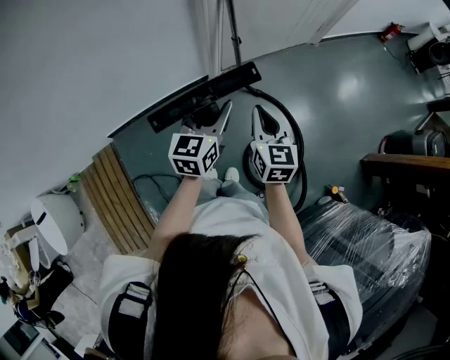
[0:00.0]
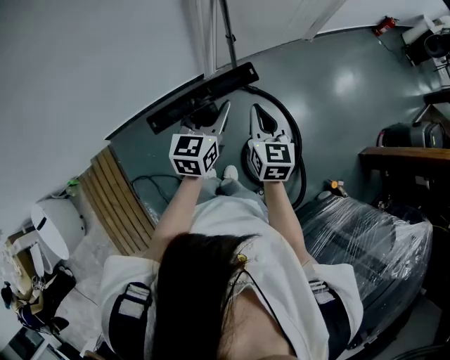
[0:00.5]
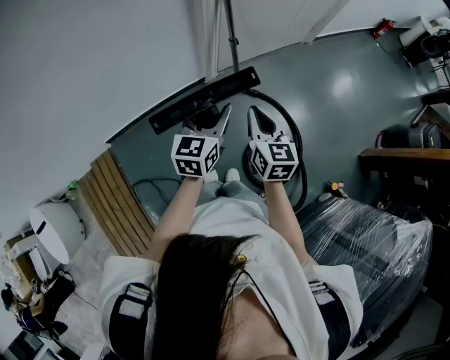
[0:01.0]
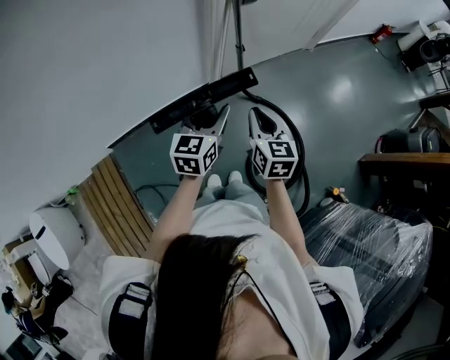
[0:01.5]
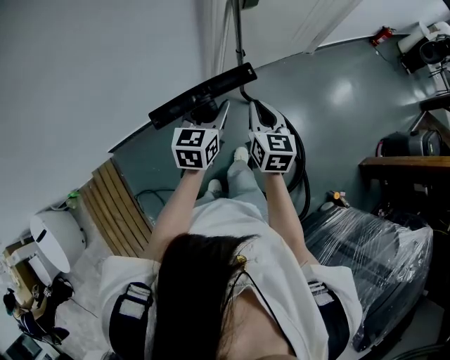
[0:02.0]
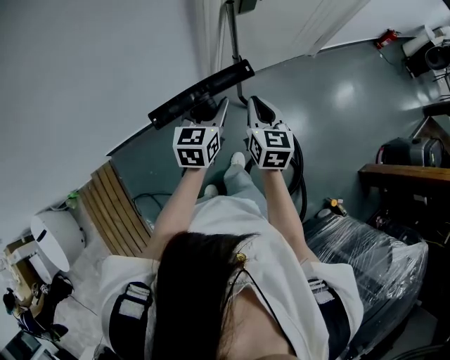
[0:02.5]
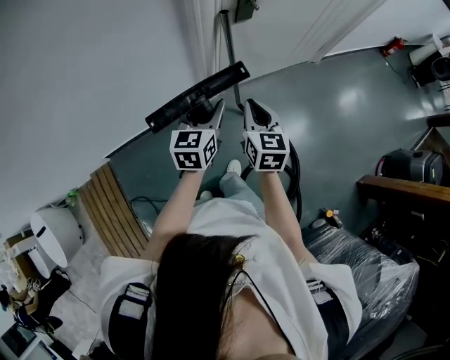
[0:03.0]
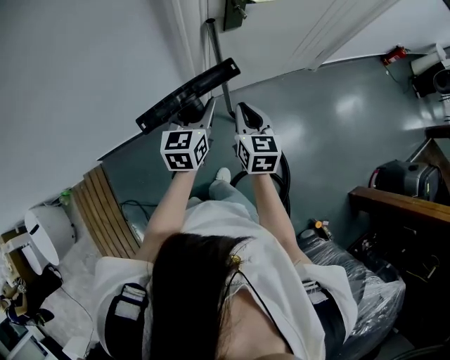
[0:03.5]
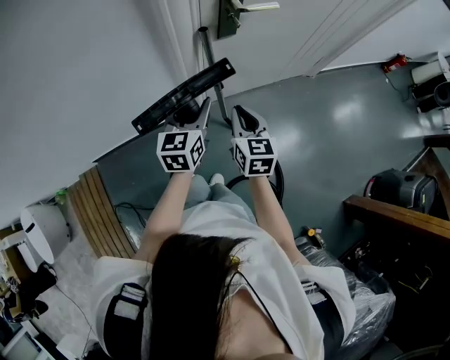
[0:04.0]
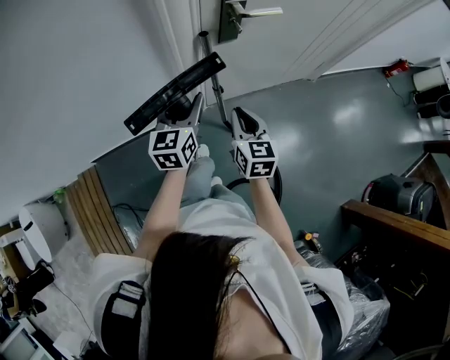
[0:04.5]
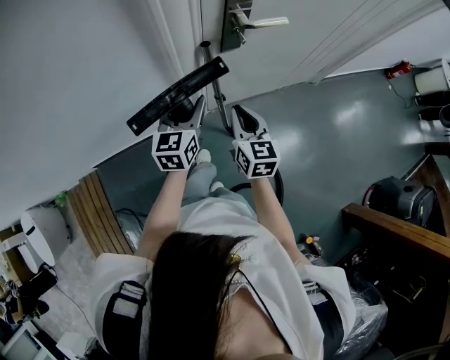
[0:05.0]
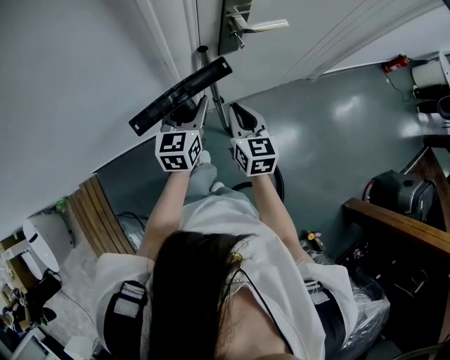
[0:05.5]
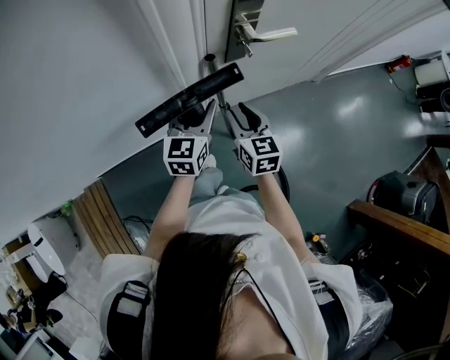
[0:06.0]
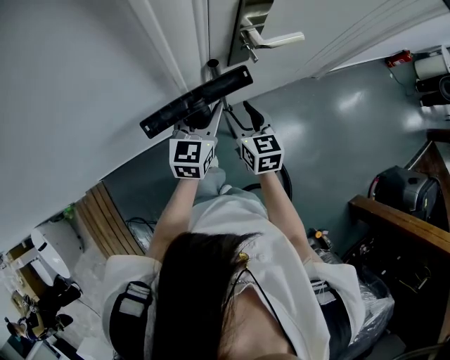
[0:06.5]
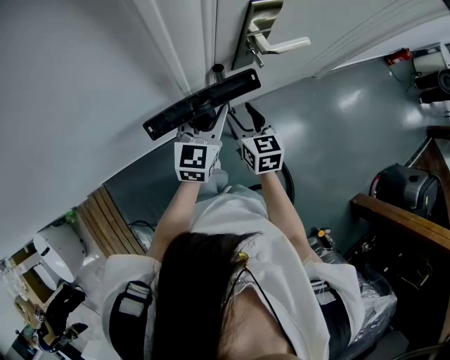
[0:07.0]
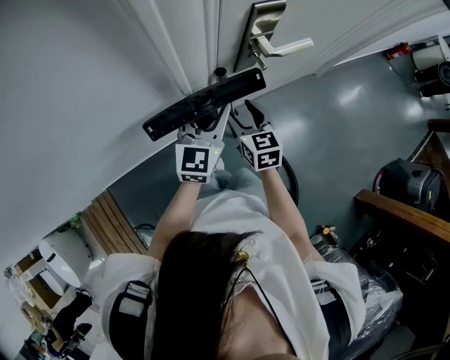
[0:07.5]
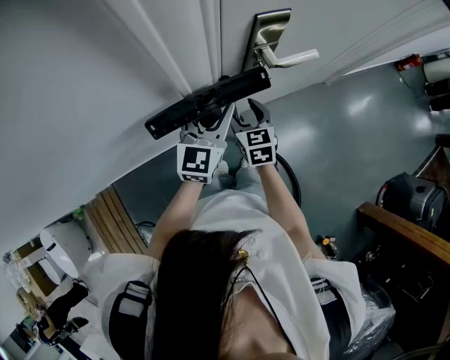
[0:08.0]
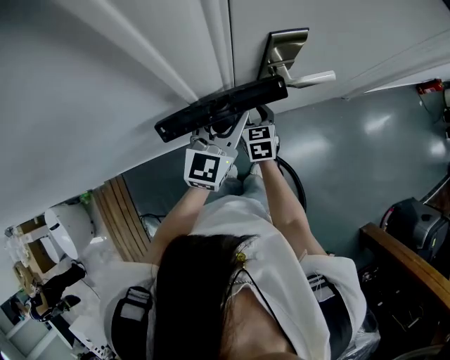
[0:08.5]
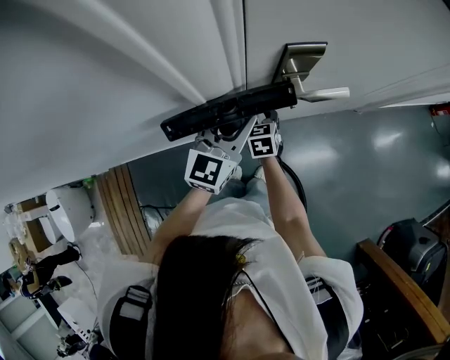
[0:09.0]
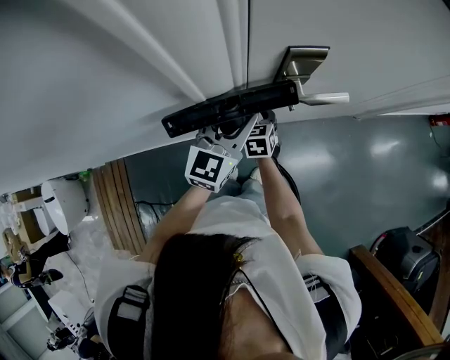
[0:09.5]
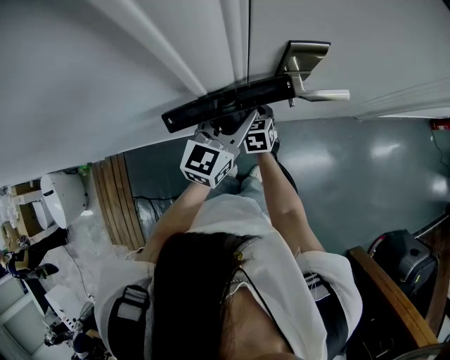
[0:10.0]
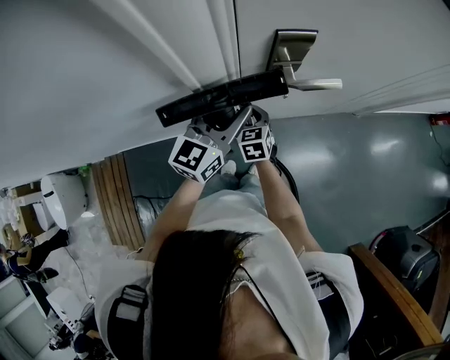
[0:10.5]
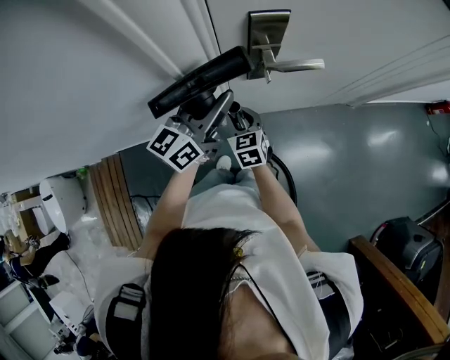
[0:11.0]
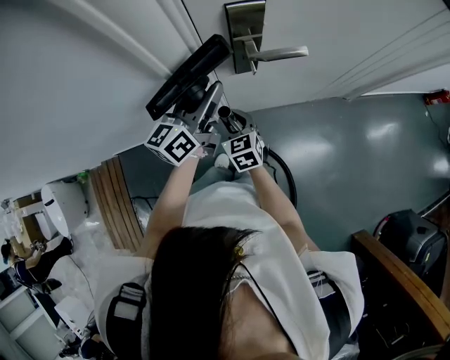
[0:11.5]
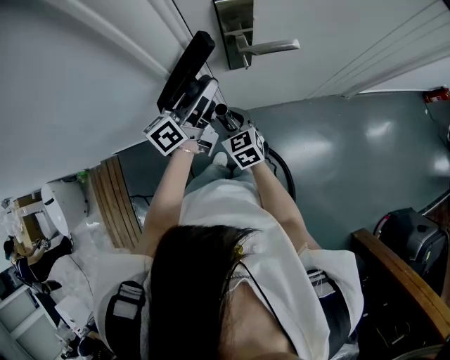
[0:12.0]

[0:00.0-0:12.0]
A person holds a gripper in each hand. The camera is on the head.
0:00.0 to 0:02.0: The right gripper moves to the left and forward, some 10 cm. The left gripper is displaced to the left by some 5 cm.
0:02.0 to 0:04.0: Both grippers travel together forward and to the right, some 25 cm.
0:04.0 to 0:06.0: The two grippers go roughly 10 cm forward.
0:06.0 to 0:08.0: The left gripper shifts about 5 cm forward. The right gripper travels forward and downward by approximately 10 cm, and opens its fingers.
0:08.0 to 0:10.0: The right gripper heads downward and forward, covering about 10 cm, and closes up.
0:10.0 to 0:12.0: The left gripper twists approximately 40 degrees counterclockwise, seen from behind. Meanwhile the right gripper travels backward and upward by approximately 15 cm.

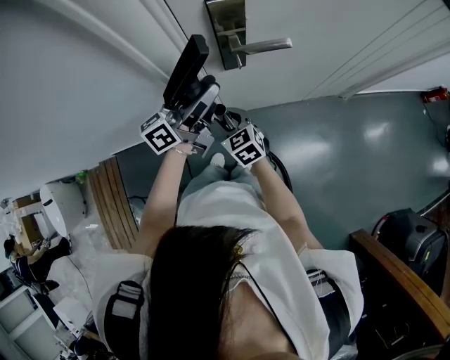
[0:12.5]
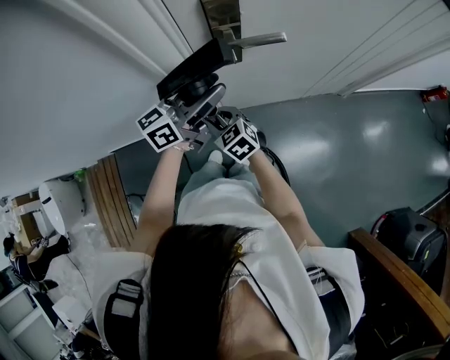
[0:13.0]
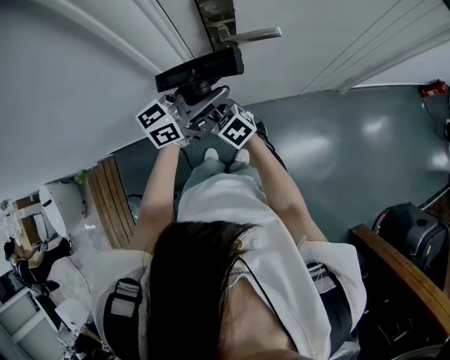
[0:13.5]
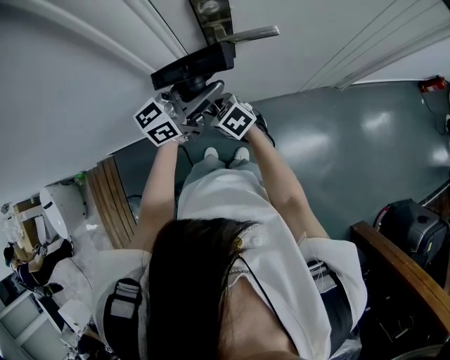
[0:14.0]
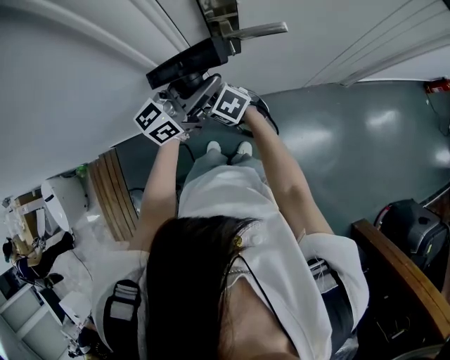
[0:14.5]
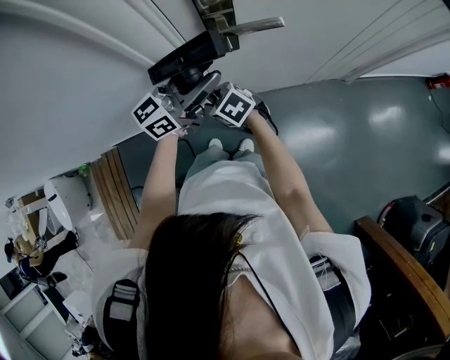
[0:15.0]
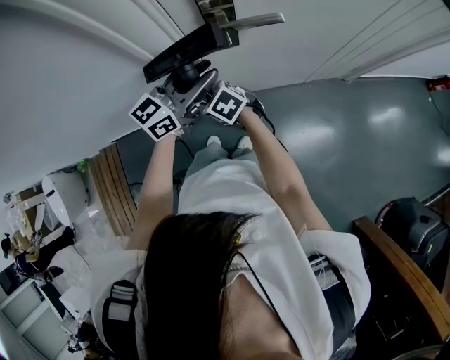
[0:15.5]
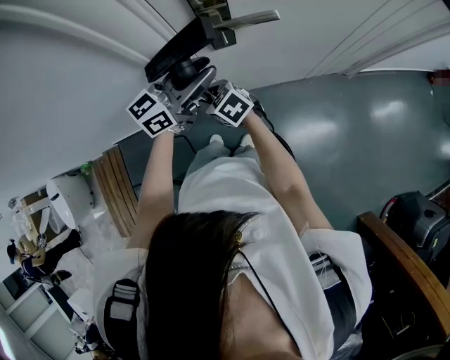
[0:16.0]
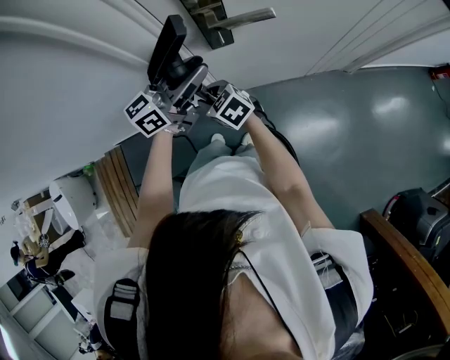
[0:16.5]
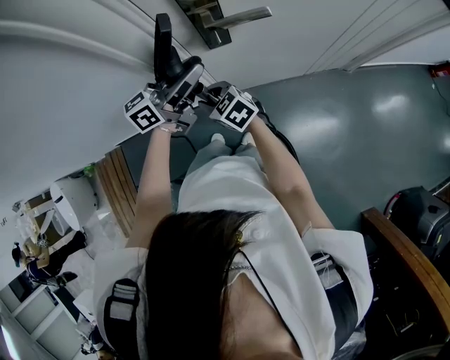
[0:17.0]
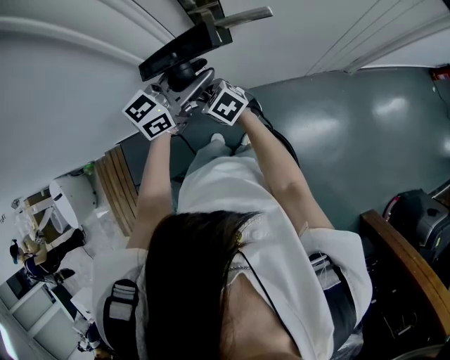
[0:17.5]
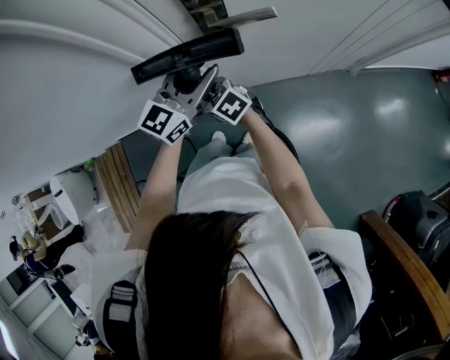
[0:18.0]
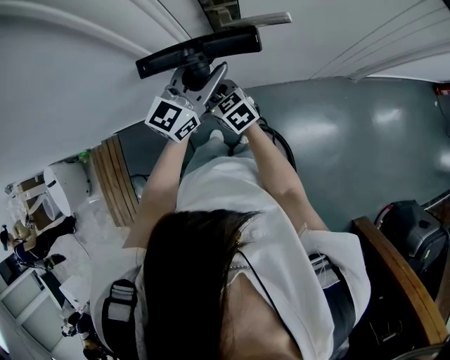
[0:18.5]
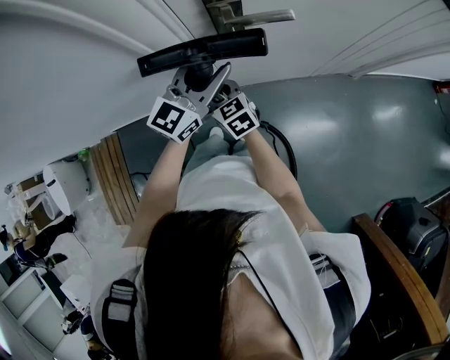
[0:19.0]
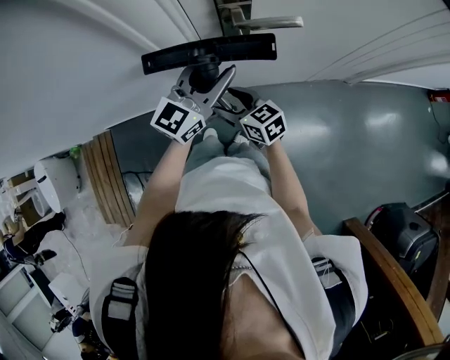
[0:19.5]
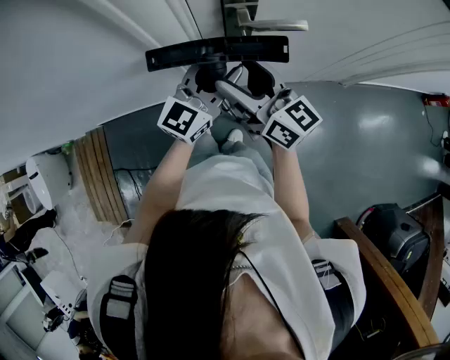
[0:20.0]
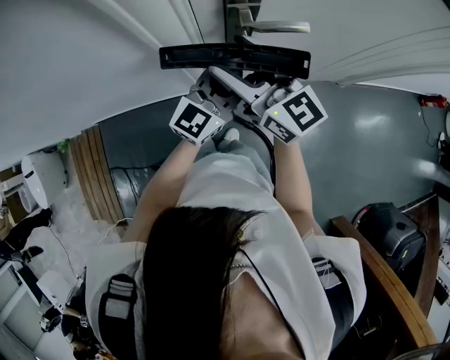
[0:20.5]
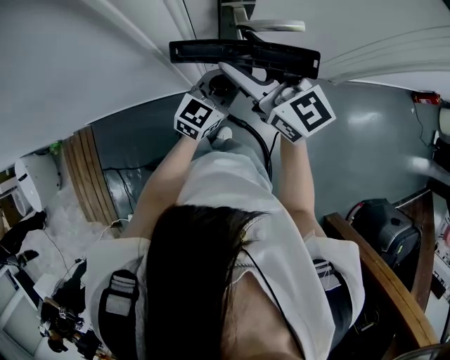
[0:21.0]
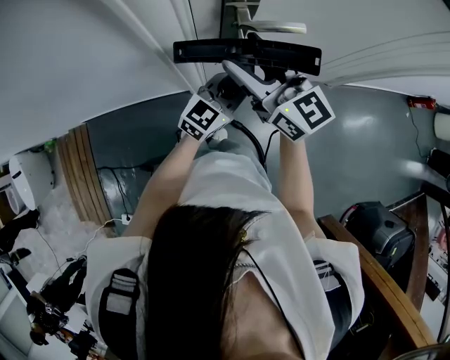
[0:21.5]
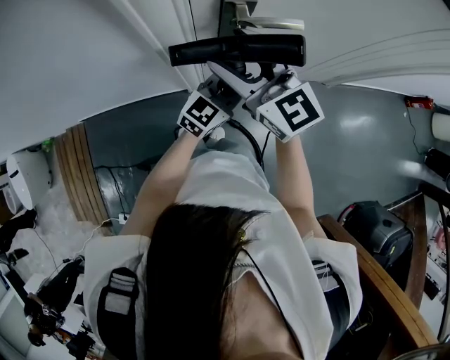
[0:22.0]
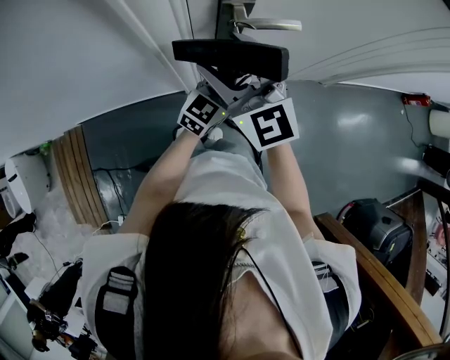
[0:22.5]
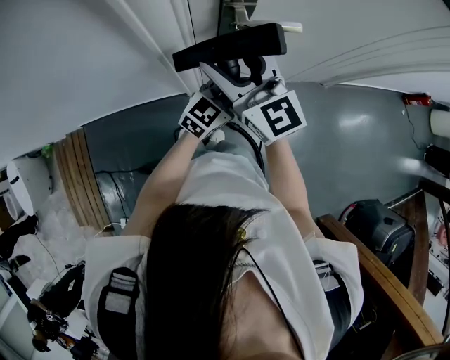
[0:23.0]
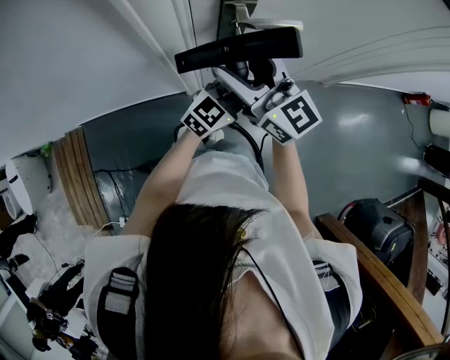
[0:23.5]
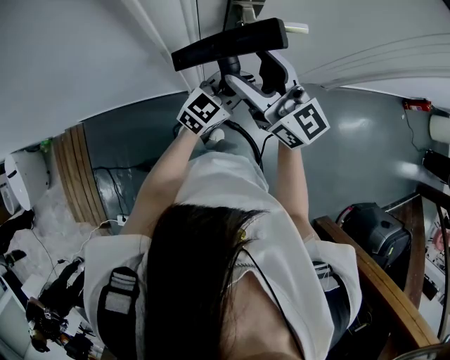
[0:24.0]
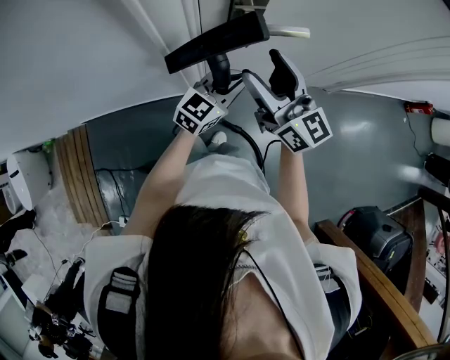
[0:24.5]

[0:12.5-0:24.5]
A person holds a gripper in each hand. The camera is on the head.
0:12.5 to 0:14.5: The right gripper rotates some 30 degrees. The left gripper changes its angle by approximately 30 degrees.
0:14.5 to 0:16.5: The grippers make only small movements.
0:16.5 to 0:18.5: The left gripper changes its angle by roughly 30 degrees.
0:18.5 to 0:20.5: The right gripper shifts roughly 25 cm upward, points its fingers about 40 degrees further upward, and opens up.
0:20.5 to 0:22.5: The left gripper heads downward and to the right, covering some 10 cm. The right gripper changes its angle by some 30 degrees.
0:22.5 to 0:24.5: The right gripper heads to the right, covering about 5 cm, and rotates about 30 degrees.

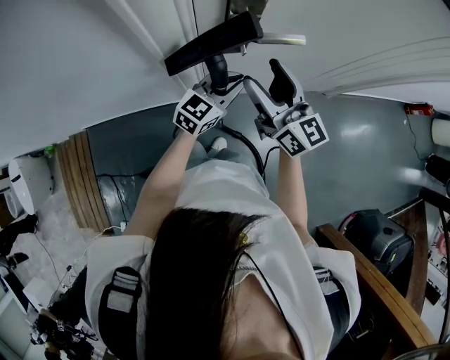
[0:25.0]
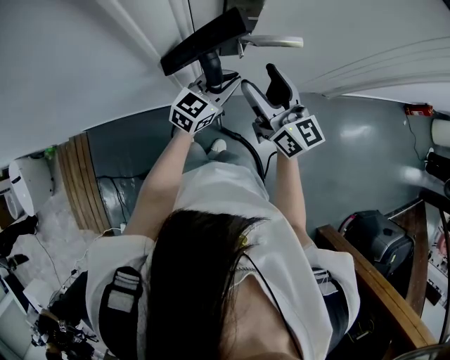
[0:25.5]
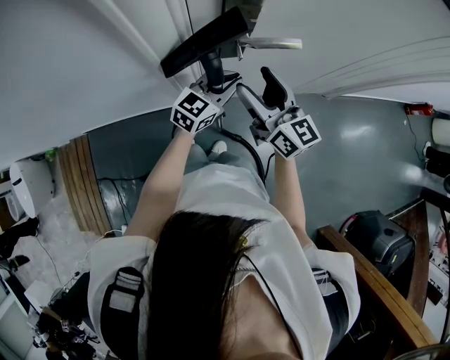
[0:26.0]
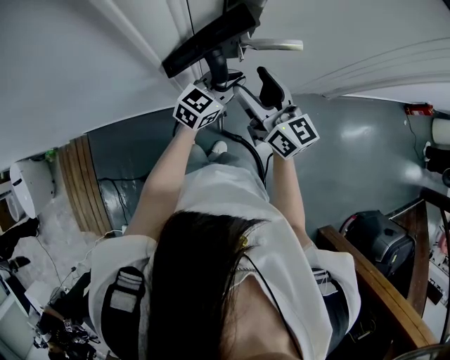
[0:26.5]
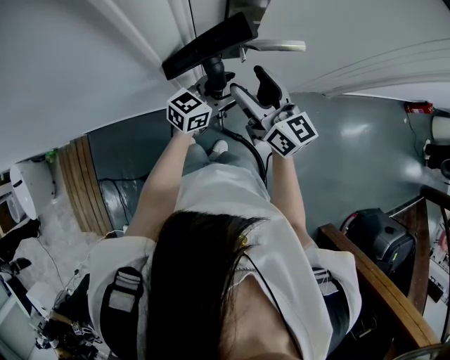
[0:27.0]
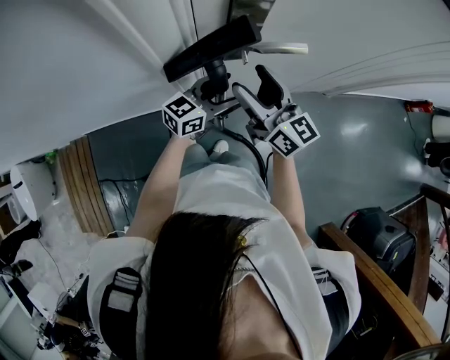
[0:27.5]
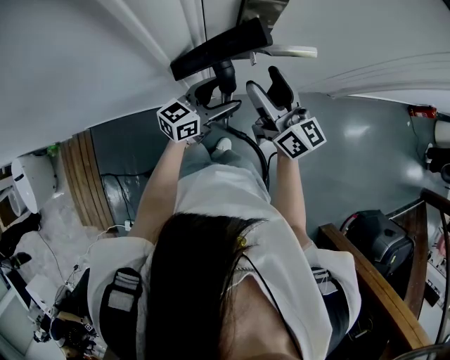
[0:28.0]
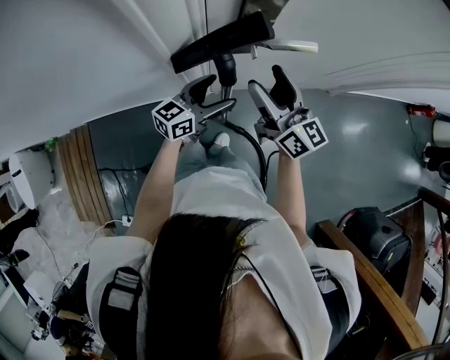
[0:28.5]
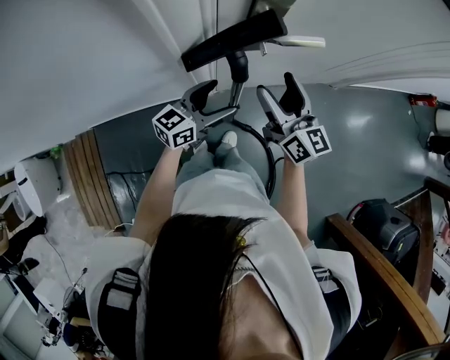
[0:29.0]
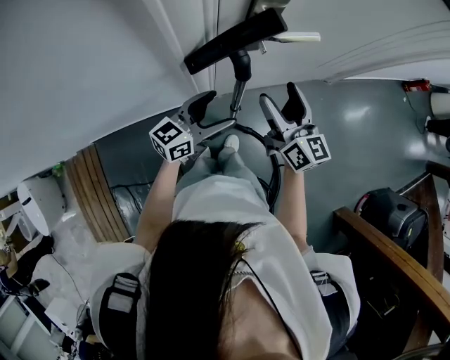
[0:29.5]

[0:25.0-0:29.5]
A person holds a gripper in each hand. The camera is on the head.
0:25.0 to 0:27.0: The left gripper opens up.
0:27.0 to 0:29.5: The right gripper moves about 5 cm. Meanwhile the left gripper heads backward and to the left, covering roughly 15 cm, and opens its fingers.
